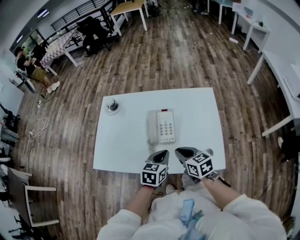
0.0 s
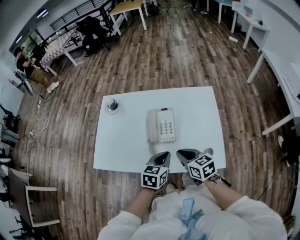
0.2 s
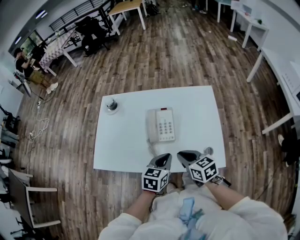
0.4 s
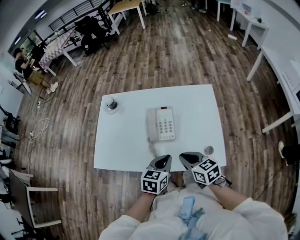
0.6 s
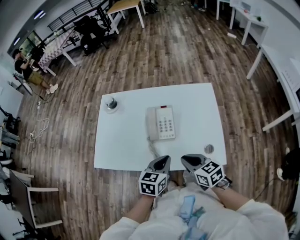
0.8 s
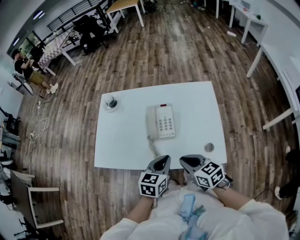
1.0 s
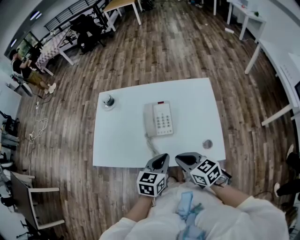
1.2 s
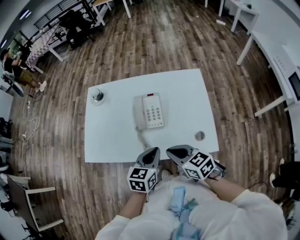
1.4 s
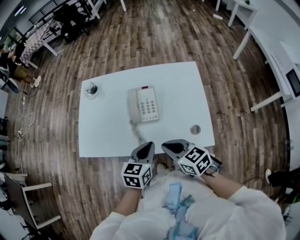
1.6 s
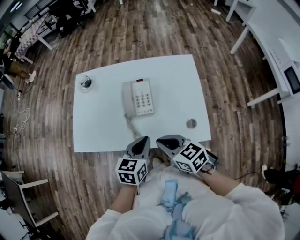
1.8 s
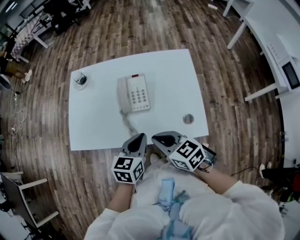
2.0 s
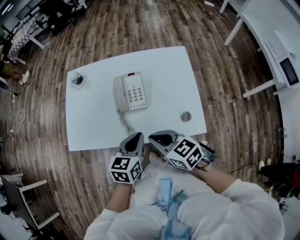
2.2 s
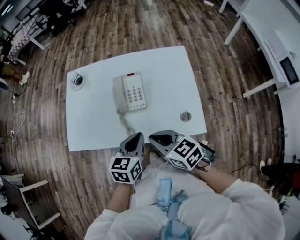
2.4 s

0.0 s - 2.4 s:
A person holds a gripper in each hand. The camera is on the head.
0.0 s - 1.2 s: The grippers both shift backward by roughly 5 cm.
1.2 s - 2.4 s: The grippers move only a little.

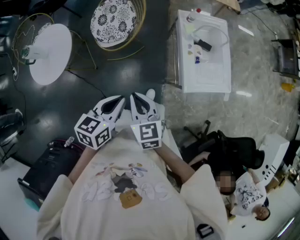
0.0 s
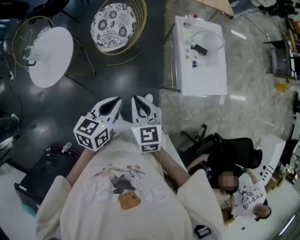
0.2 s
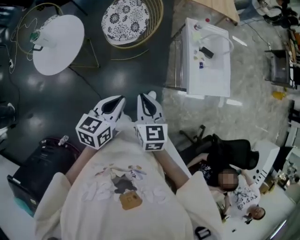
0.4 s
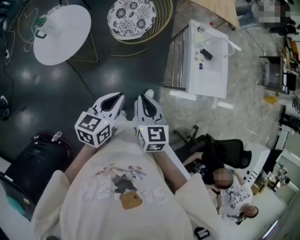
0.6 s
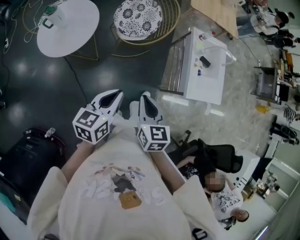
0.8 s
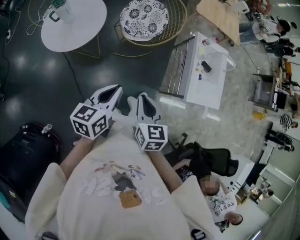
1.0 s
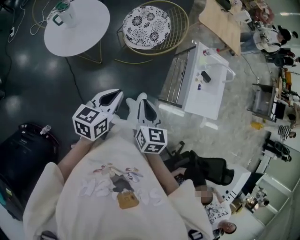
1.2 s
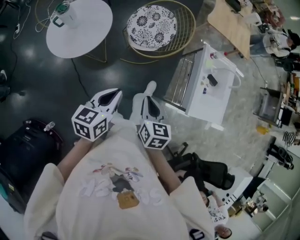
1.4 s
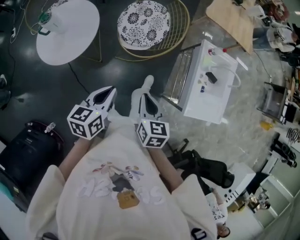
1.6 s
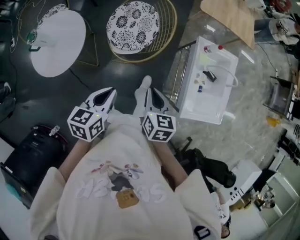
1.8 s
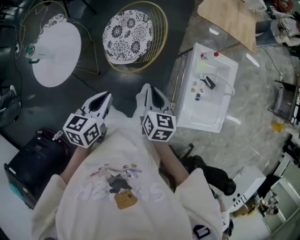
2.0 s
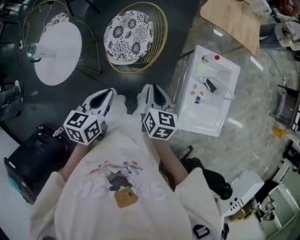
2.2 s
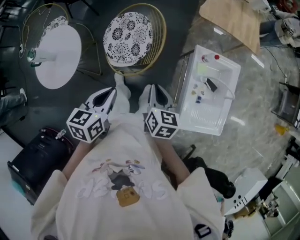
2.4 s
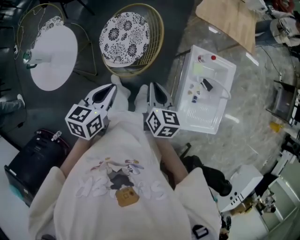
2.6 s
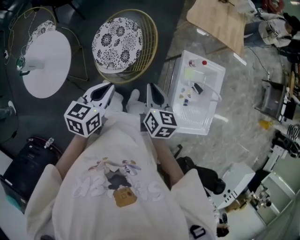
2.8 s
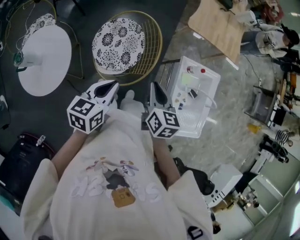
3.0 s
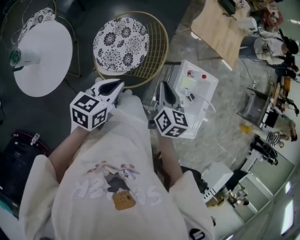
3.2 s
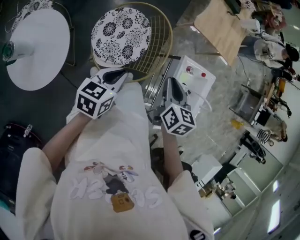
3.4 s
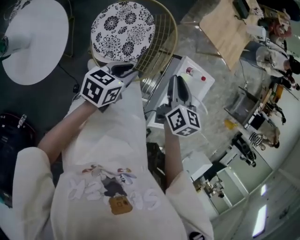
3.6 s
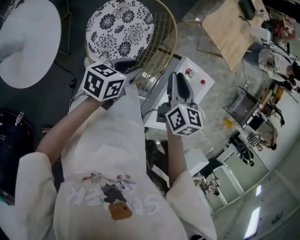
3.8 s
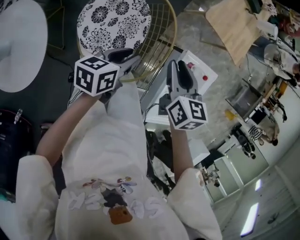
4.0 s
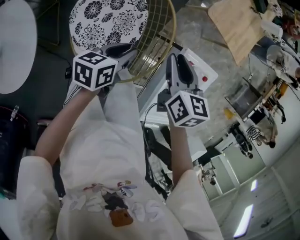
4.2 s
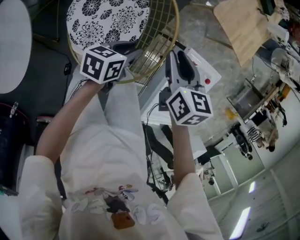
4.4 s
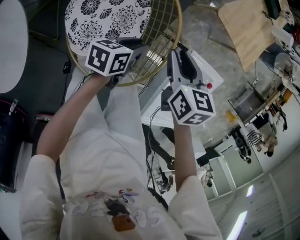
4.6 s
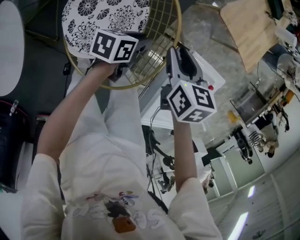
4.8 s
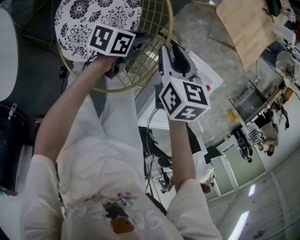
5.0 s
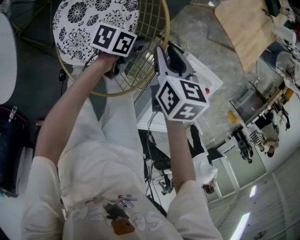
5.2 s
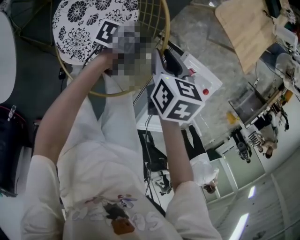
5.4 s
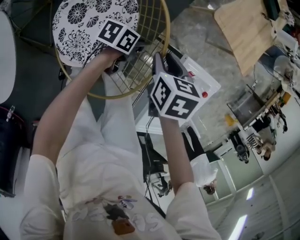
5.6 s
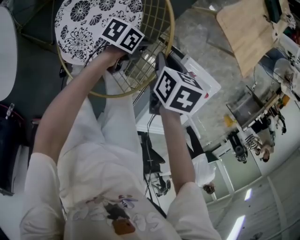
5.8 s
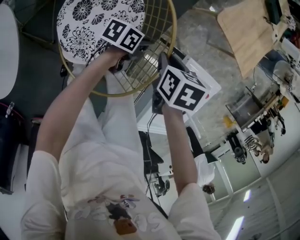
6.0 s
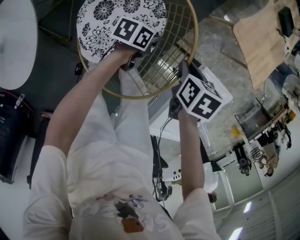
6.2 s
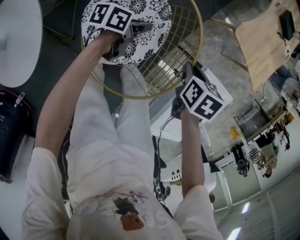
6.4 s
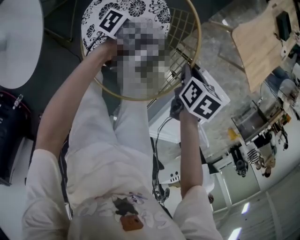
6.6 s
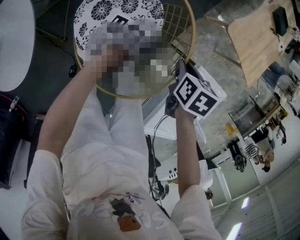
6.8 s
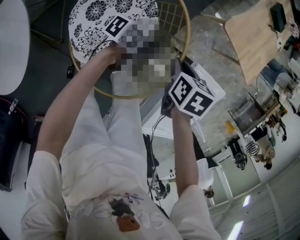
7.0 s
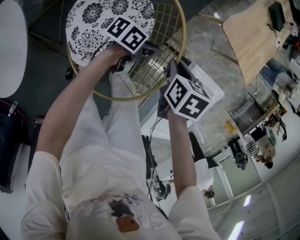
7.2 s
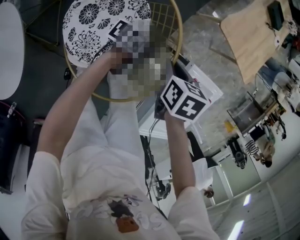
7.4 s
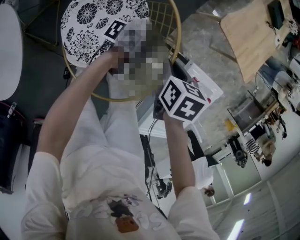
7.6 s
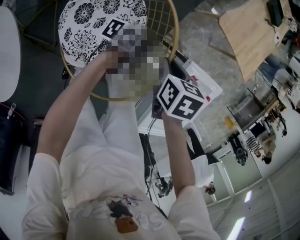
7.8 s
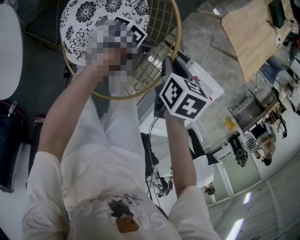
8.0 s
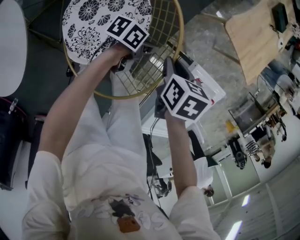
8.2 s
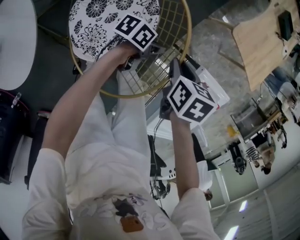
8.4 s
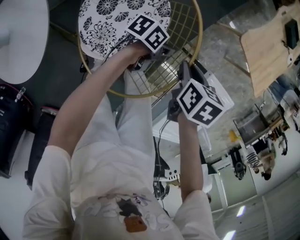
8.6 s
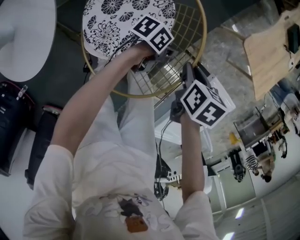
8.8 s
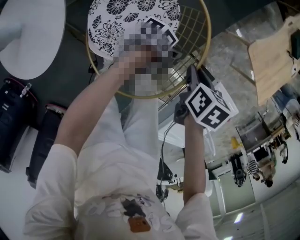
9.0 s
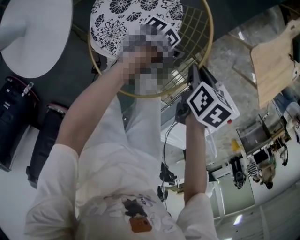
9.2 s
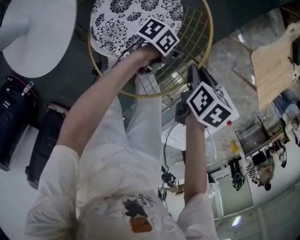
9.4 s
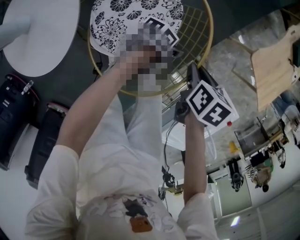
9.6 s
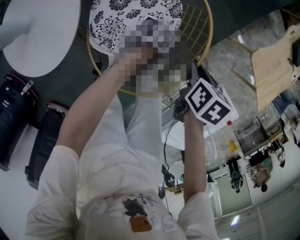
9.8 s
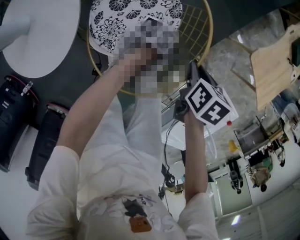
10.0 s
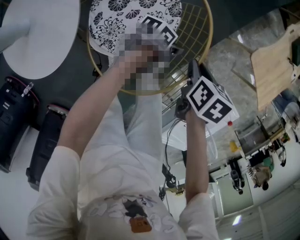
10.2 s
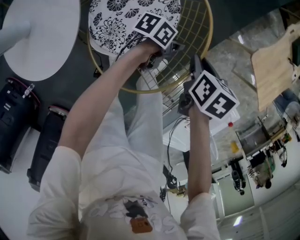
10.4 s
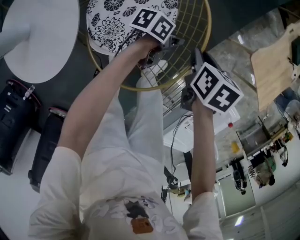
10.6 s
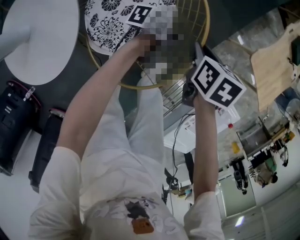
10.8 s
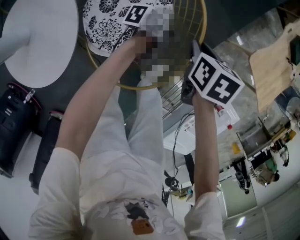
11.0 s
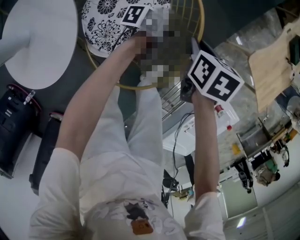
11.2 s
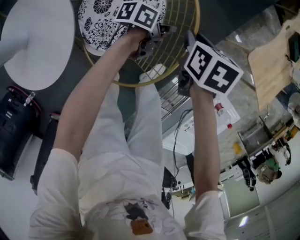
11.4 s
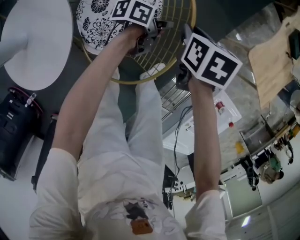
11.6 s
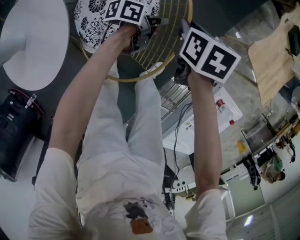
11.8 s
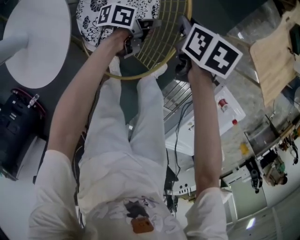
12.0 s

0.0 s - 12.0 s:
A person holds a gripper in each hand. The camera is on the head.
0.0 s - 1.6 s: The right gripper moves to the left, roughly 15 cm. Meanwhile the left gripper goes approximately 25 cm to the left, and rotates approximately 20 degrees.
1.6 s - 3.0 s: Both grippers move forward, approximately 30 cm.
3.0 s - 4.4 s: The right gripper goes about 30 cm forward and downward, turns by some 20 degrees, and opens up, while the left gripper travels downward and forward by some 35 cm, rotates roughly 30 degrees, and opens.
4.4 s - 6.0 s: The right gripper is displaced downward by some 10 cm, and swivels approximately 20 degrees, while the left gripper heads downward, forward and to the right, covering about 15 cm.
6.0 s - 7.6 s: The left gripper reaches about 15 cm to the left, then returns.
7.6 s - 9.0 s: The grippers both shift to the left by approximately 10 cm.
9.0 s - 10.4 s: The two grippers go about 10 cm to the left.
10.4 s - 12.0 s: The right gripper travels to the left and forward by roughly 10 cm. The left gripper shifts about 10 cm to the left.

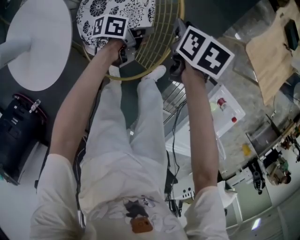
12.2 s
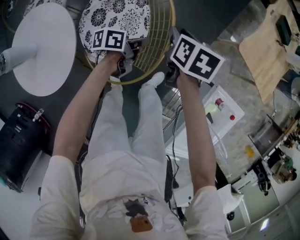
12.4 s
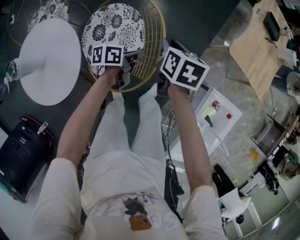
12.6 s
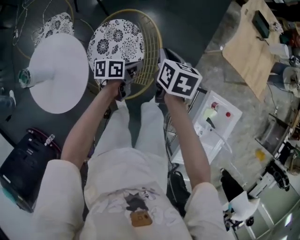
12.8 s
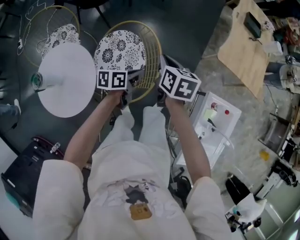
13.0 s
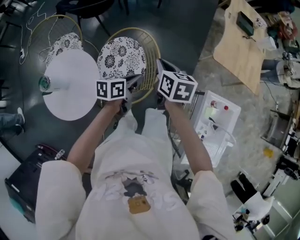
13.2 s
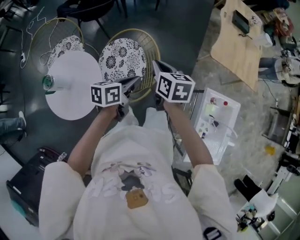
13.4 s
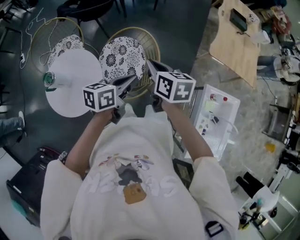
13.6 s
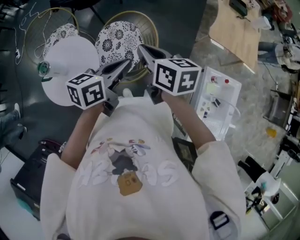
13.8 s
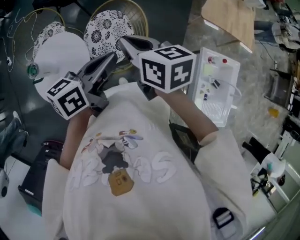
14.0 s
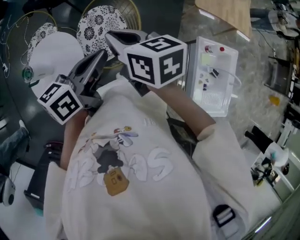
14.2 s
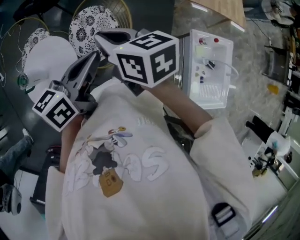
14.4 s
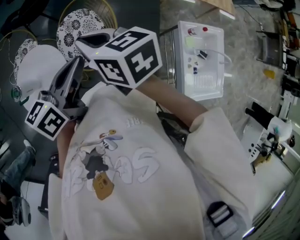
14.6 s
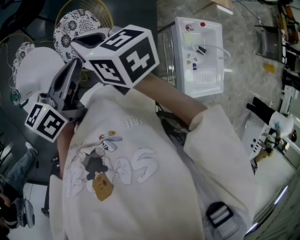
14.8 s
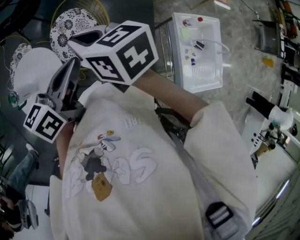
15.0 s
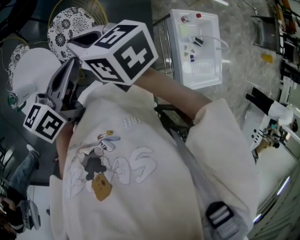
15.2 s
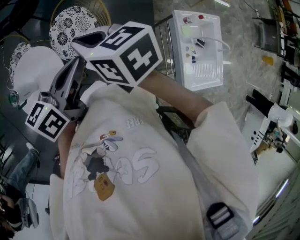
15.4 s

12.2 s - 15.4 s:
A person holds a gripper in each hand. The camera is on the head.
12.2 s - 13.8 s: The grippers both shift upward and backward by approximately 40 cm. The right gripper changes its angle by roughly 30 degrees, and closes up. Meanwhile the left gripper turns by approximately 40 degrees.
13.8 s - 15.4 s: The two grippers go some 5 cm backward.

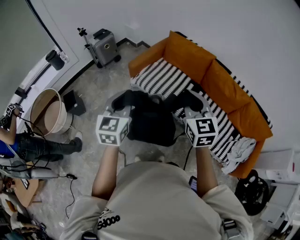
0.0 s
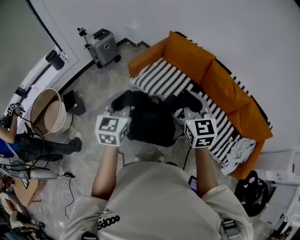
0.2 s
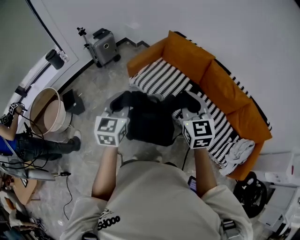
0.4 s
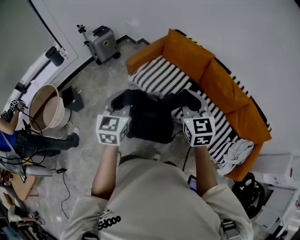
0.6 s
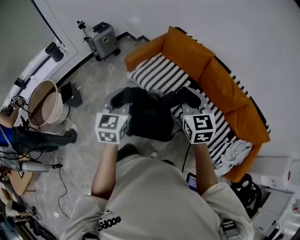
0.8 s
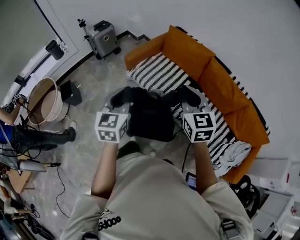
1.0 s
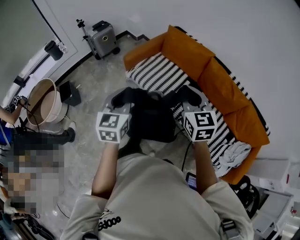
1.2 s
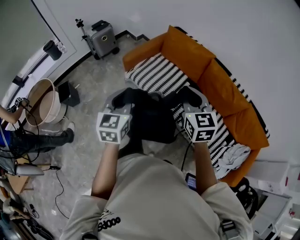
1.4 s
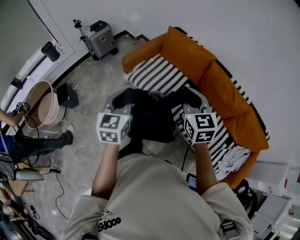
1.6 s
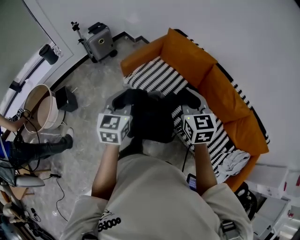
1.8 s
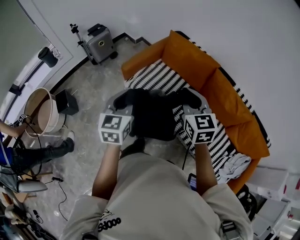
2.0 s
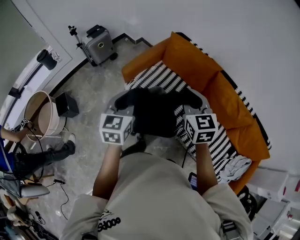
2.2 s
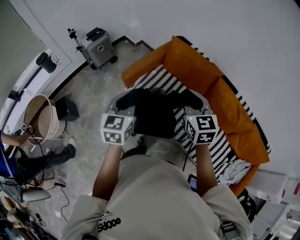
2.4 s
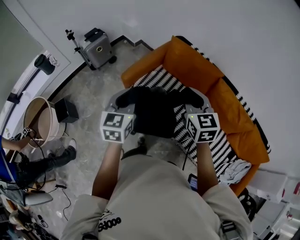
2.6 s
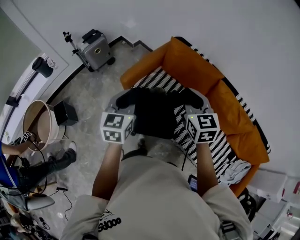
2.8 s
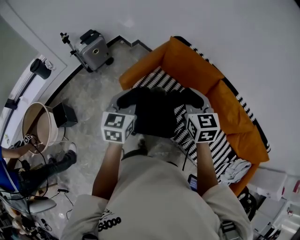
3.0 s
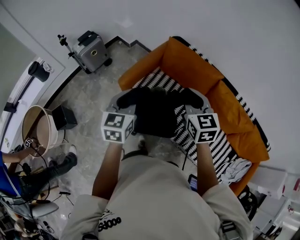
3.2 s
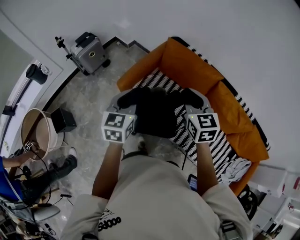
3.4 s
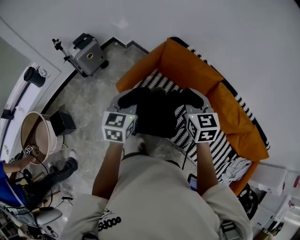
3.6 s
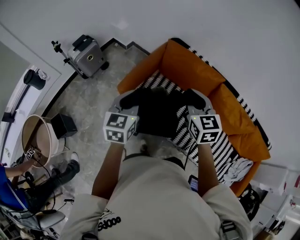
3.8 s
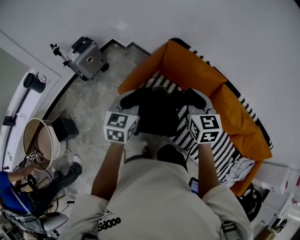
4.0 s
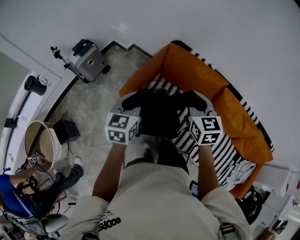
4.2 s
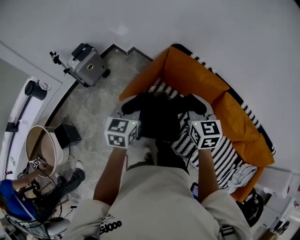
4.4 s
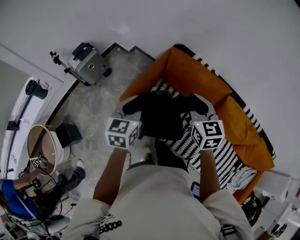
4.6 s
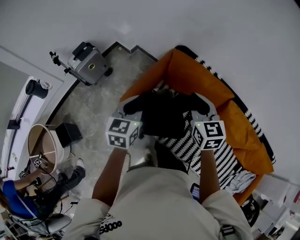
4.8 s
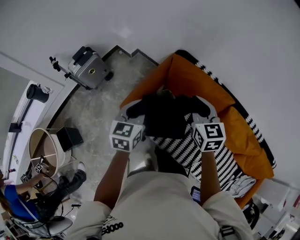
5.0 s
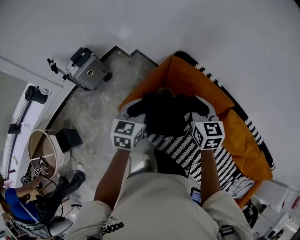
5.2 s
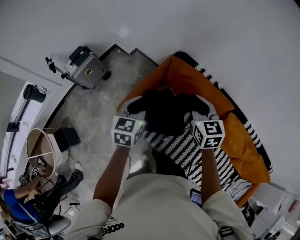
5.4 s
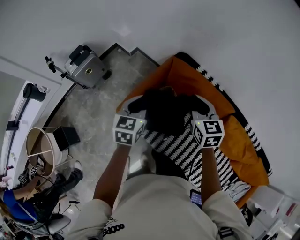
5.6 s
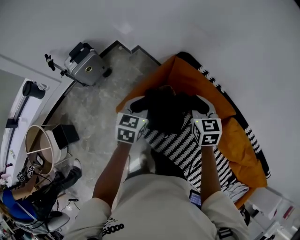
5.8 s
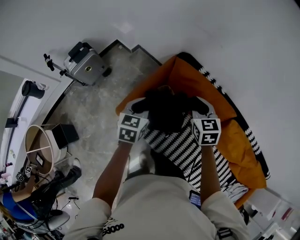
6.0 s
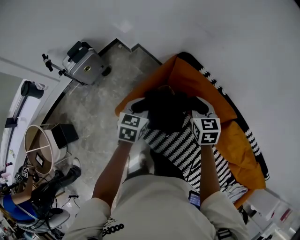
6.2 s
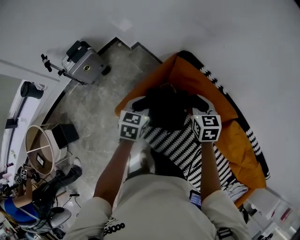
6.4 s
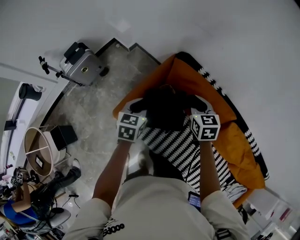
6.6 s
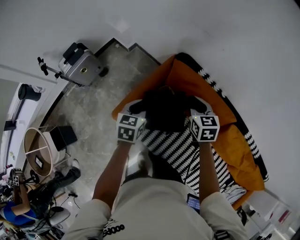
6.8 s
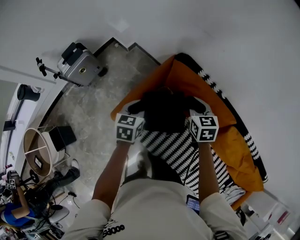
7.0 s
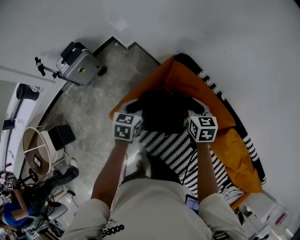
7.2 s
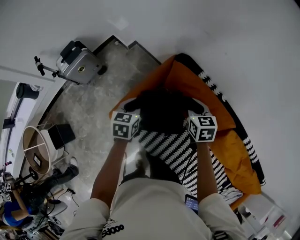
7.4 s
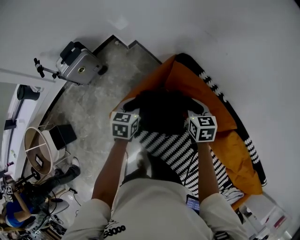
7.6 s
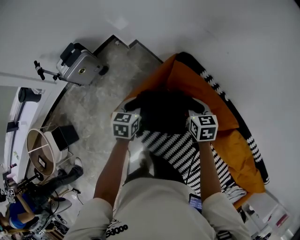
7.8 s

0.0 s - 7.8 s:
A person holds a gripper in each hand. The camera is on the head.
0.0 s - 1.6 s: The two grippers go approximately 10 cm to the right and forward.
1.6 s - 3.2 s: Both grippers move forward, some 25 cm.
3.2 s - 4.6 s: Both grippers travel together forward, roughly 15 cm.
4.6 s - 6.2 s: Both grippers move forward and downward, some 20 cm.
6.2 s - 7.8 s: The right gripper goes some 10 cm downward and forward, while the left gripper goes some 10 cm forward and downward.
